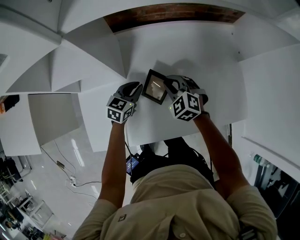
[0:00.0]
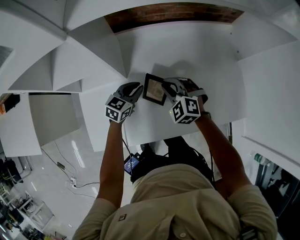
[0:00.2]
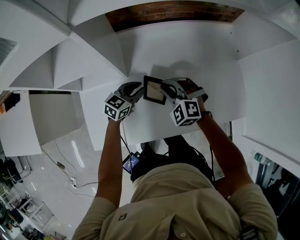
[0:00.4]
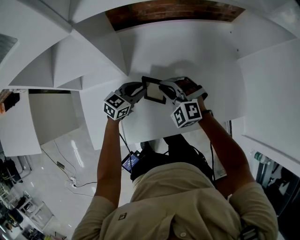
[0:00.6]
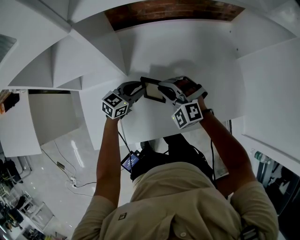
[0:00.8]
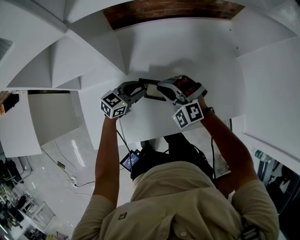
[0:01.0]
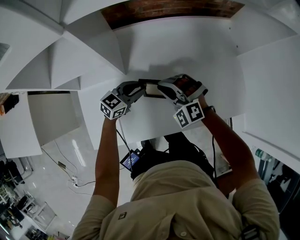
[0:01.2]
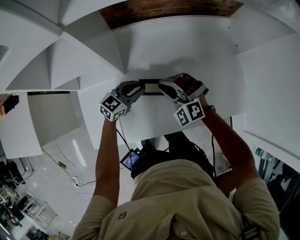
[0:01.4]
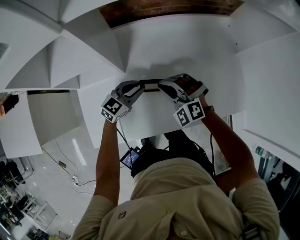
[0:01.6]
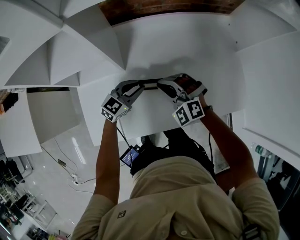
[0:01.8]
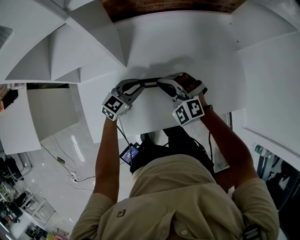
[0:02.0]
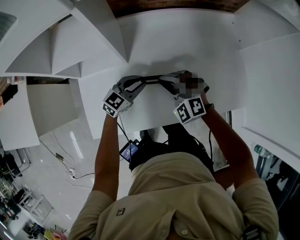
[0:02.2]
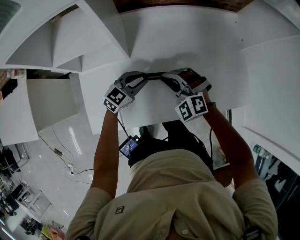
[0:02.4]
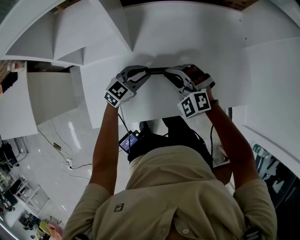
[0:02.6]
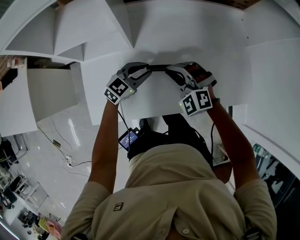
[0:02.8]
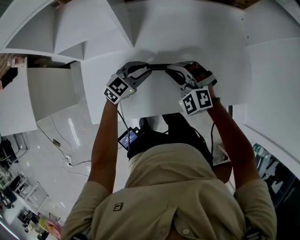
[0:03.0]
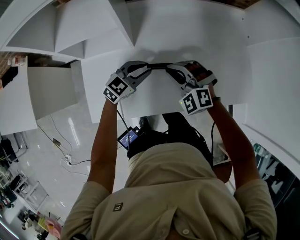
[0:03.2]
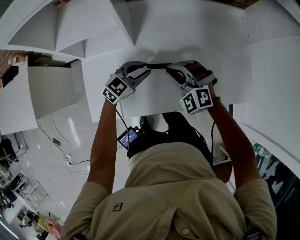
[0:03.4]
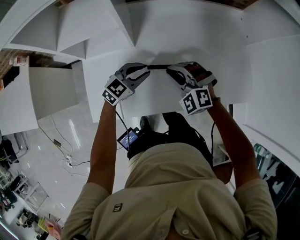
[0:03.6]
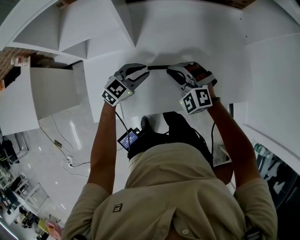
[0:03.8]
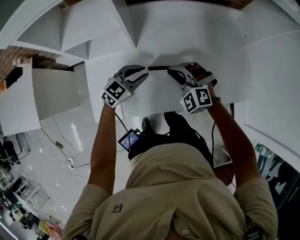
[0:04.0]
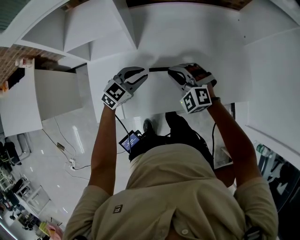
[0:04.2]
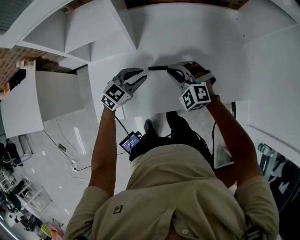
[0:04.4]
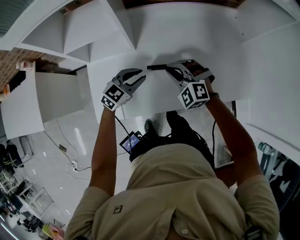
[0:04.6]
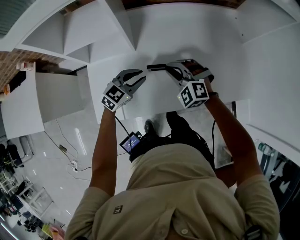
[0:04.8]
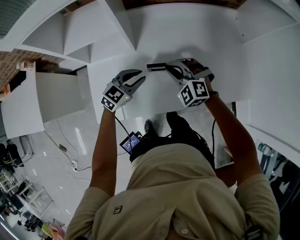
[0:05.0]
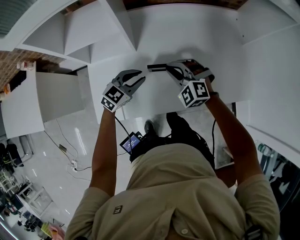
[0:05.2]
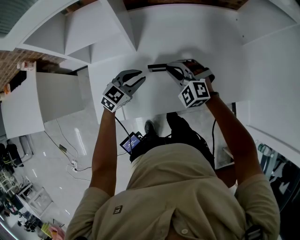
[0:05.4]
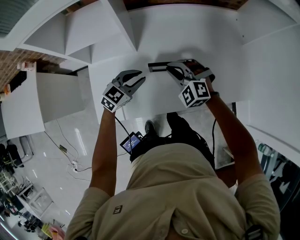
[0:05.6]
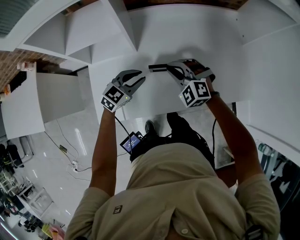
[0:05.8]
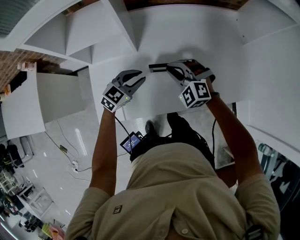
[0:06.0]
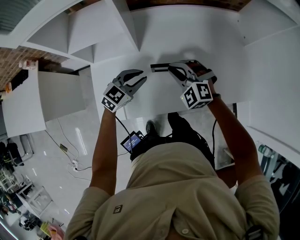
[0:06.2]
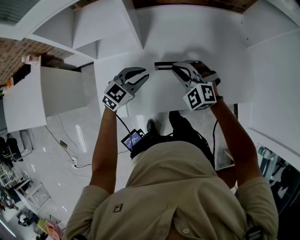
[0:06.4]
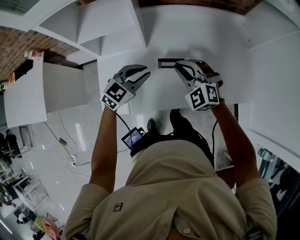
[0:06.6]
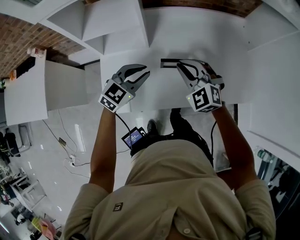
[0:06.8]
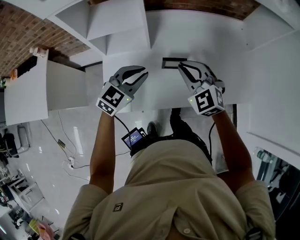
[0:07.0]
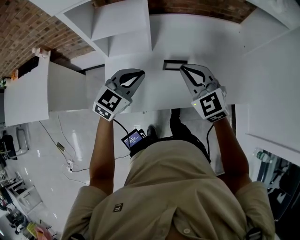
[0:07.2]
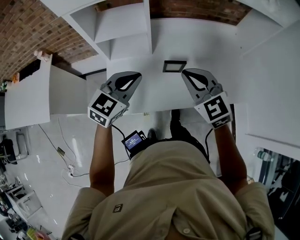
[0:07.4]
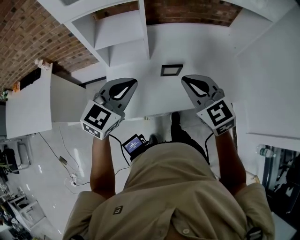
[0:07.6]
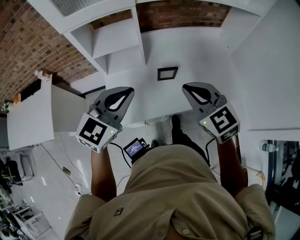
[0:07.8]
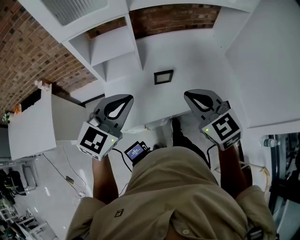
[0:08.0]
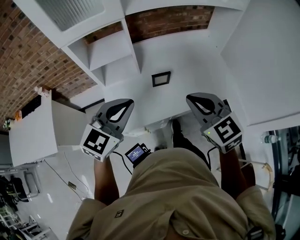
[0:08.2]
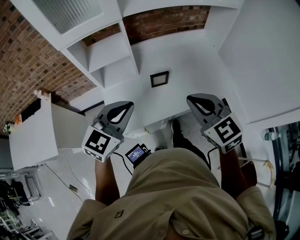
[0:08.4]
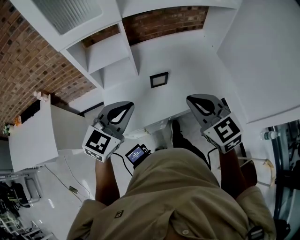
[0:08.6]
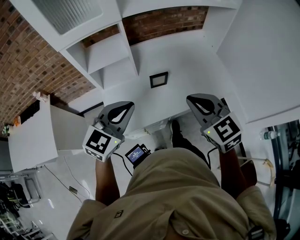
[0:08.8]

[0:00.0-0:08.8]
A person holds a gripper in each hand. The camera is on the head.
0:00.0 to 0:01.4: The right gripper heads backward, covering roughly 5 cm, and swivels some 30 degrees. Meanwhile the left gripper changes its angle by roughly 20 degrees.
0:01.4 to 0:03.0: The grippers move only a little.
0:03.0 to 0:04.4: The left gripper ends up approximately 5 cm from where it was.
0:04.4 to 0:05.8: There are only small adjustments of the grippers.
0:05.8 to 0:07.4: The grippers both shift upward and backward by some 25 cm. The right gripper changes its angle by approximately 40 degrees.
0:07.4 to 0:08.8: The right gripper is displaced backward, upward and to the right by about 15 cm. Meanwhile the left gripper moves backward and upward, about 15 cm.

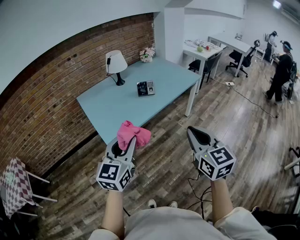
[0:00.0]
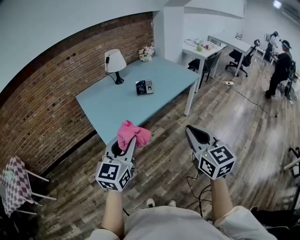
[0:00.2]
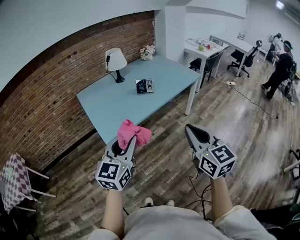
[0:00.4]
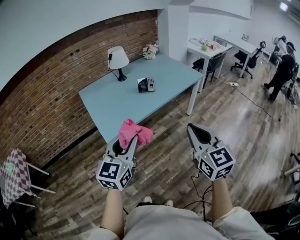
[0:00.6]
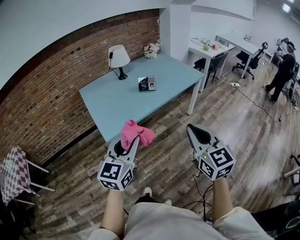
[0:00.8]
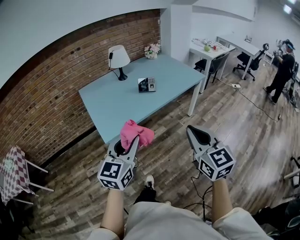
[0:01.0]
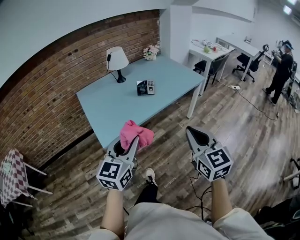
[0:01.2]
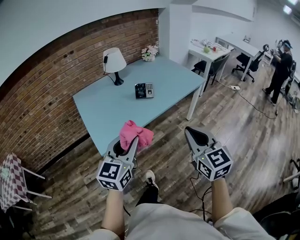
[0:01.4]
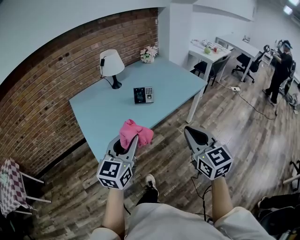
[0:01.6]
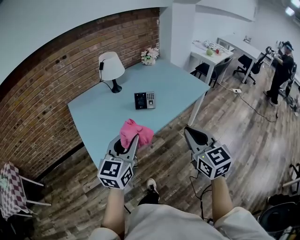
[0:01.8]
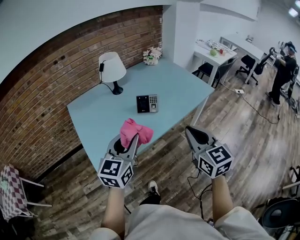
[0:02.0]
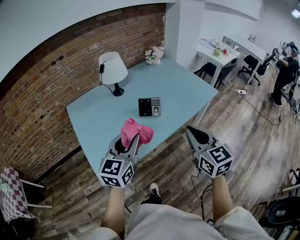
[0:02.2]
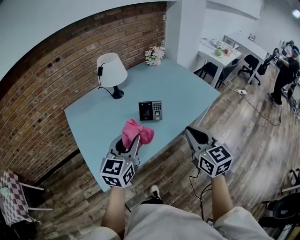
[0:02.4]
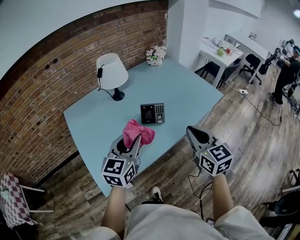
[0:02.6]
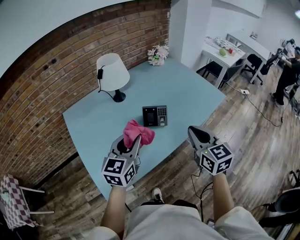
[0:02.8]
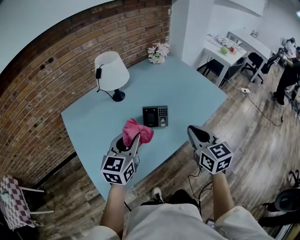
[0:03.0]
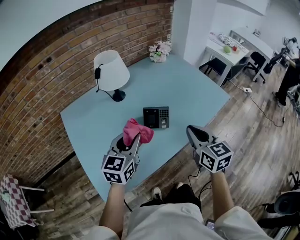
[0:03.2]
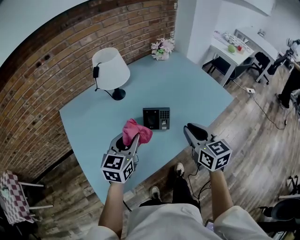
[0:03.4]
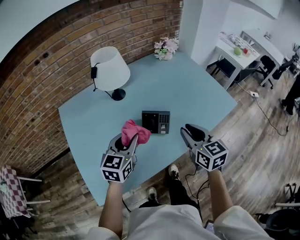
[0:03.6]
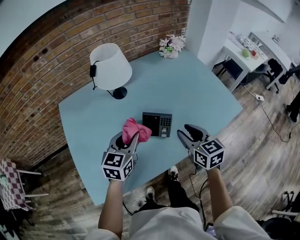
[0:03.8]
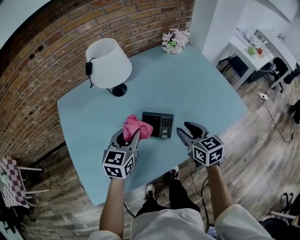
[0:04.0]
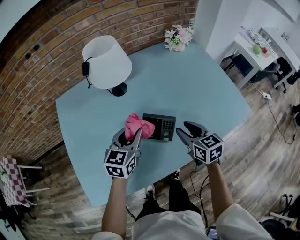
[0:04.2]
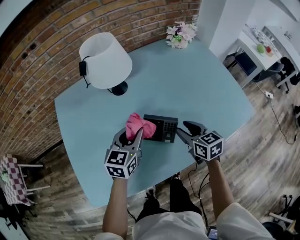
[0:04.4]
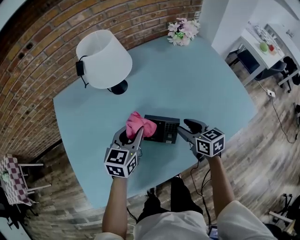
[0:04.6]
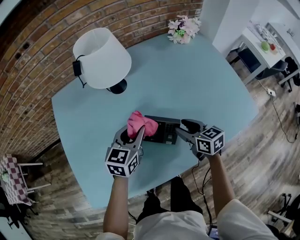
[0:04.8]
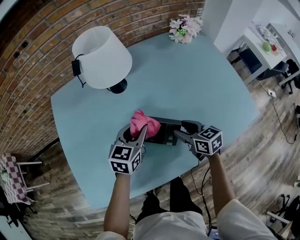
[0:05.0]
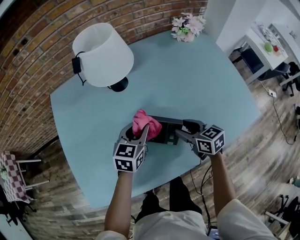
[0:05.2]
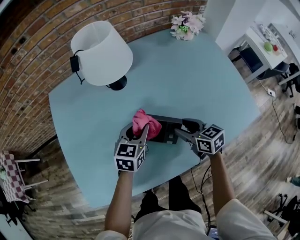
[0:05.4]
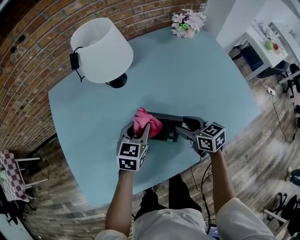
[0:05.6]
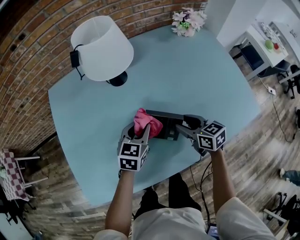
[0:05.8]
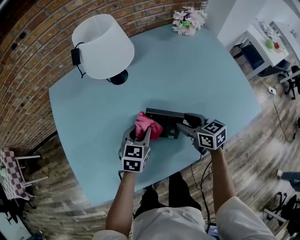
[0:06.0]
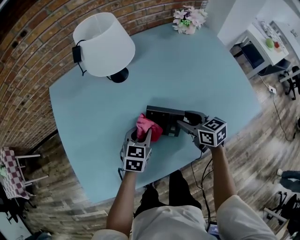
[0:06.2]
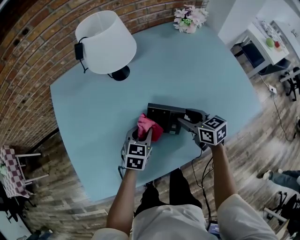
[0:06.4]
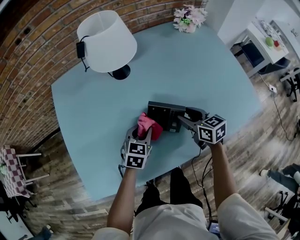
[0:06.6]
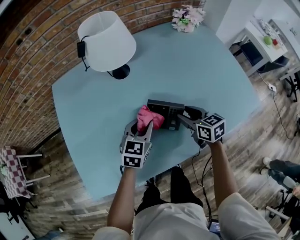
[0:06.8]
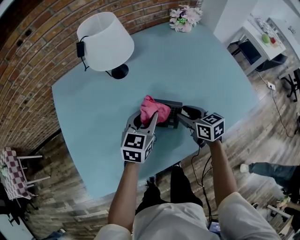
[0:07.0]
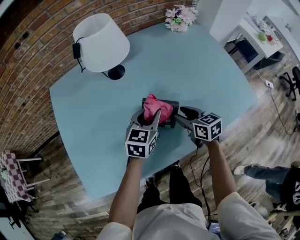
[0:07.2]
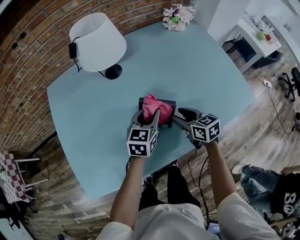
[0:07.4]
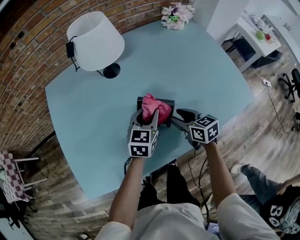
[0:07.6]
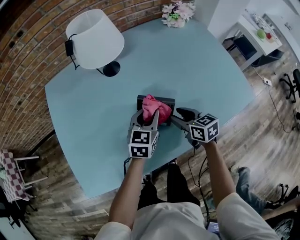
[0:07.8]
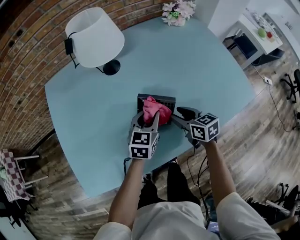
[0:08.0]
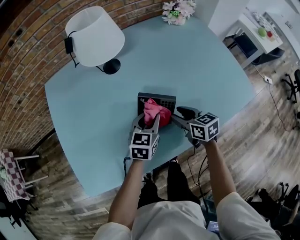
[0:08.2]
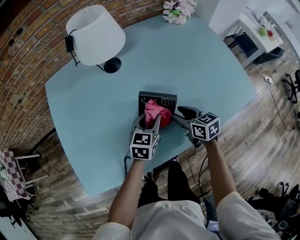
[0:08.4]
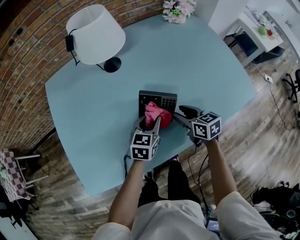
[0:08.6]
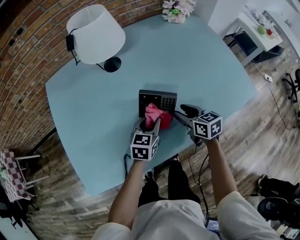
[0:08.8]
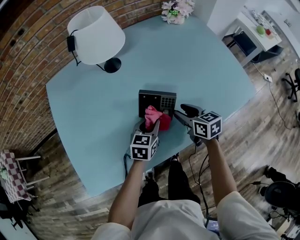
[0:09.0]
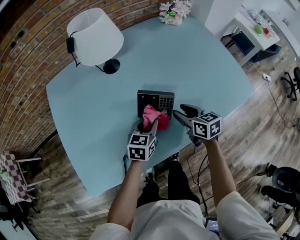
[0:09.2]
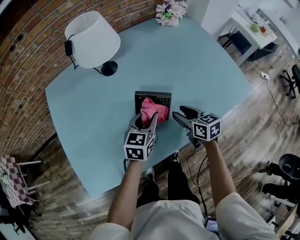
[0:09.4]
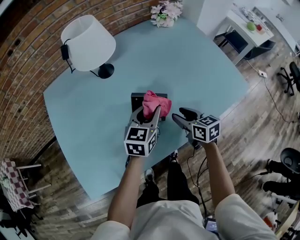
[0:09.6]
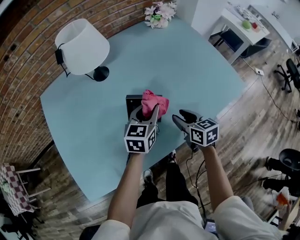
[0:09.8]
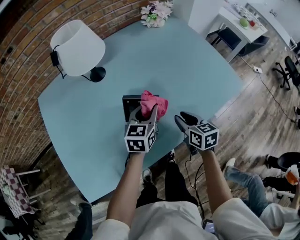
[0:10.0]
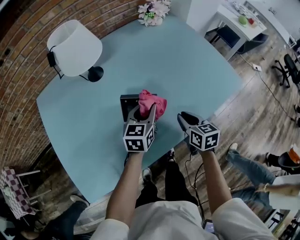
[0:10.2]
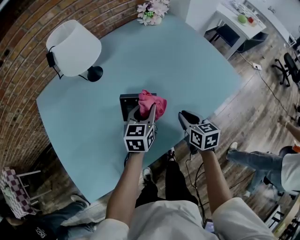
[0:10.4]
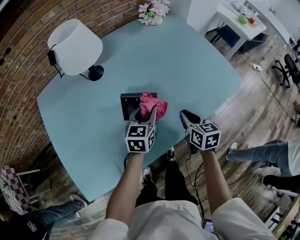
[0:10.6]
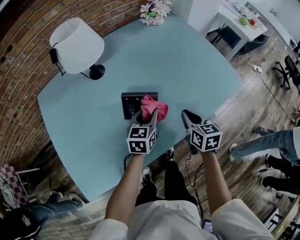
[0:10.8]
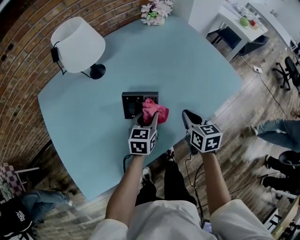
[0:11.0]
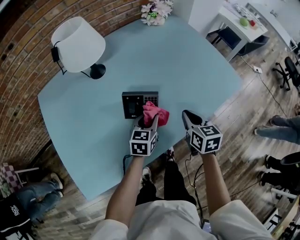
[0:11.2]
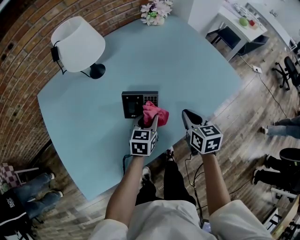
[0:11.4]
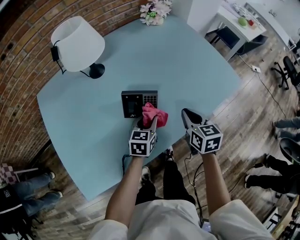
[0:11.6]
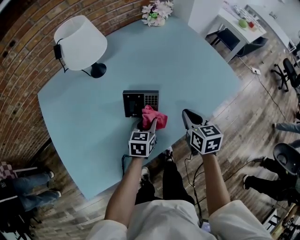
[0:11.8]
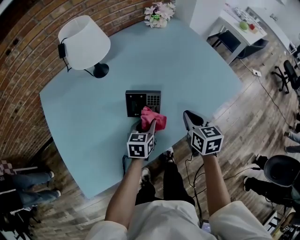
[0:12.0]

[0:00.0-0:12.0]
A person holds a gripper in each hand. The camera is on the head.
0:00.0 to 0:01.6: The grippers both shift forward by about 15 cm.
0:01.6 to 0:03.0: The two grippers go roughly 30 cm forward.
0:03.0 to 0:04.4: Both grippers move forward and downward, approximately 25 cm. The right gripper swivels some 30 degrees, and opens up.
0:04.4 to 0:06.0: The left gripper is displaced downward by roughly 10 cm; the right gripper shifts by approximately 5 cm.
0:06.0 to 0:07.6: The left gripper goes roughly 5 cm to the right.
0:07.6 to 0:09.0: The left gripper is displaced downward and backward by some 10 cm.
0:09.0 to 0:10.4: The left gripper goes approximately 10 cm upward and to the right, while the right gripper goes roughly 10 cm to the right, and closes its fingers.
0:10.4 to 0:12.0: The left gripper moves backward and downward, approximately 10 cm, while the right gripper ends up some 5 cm from where it was.

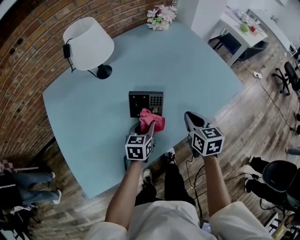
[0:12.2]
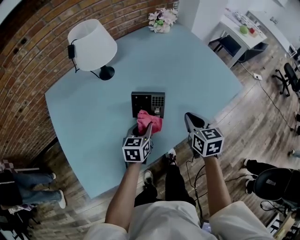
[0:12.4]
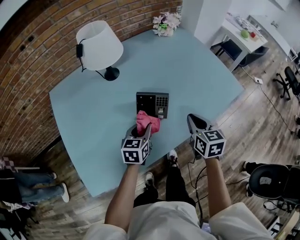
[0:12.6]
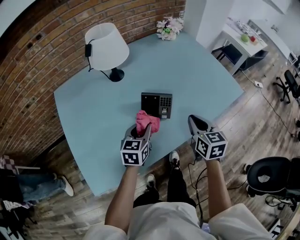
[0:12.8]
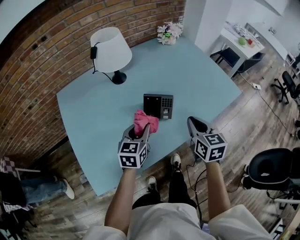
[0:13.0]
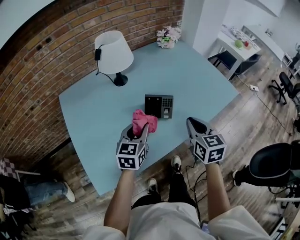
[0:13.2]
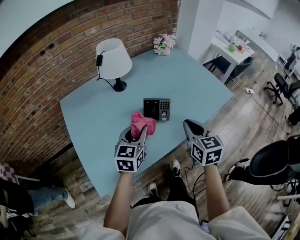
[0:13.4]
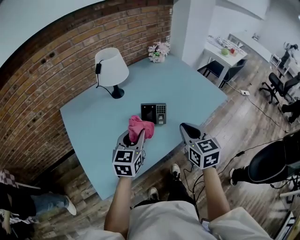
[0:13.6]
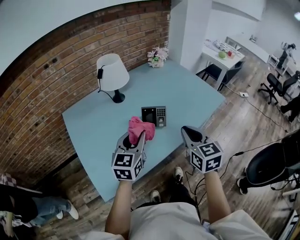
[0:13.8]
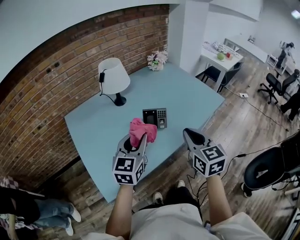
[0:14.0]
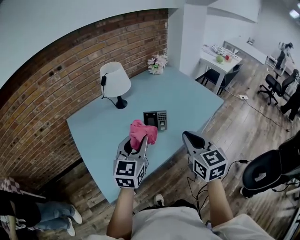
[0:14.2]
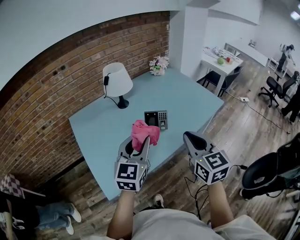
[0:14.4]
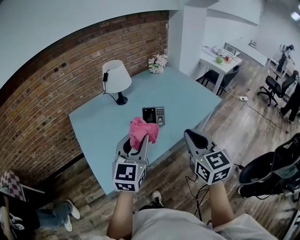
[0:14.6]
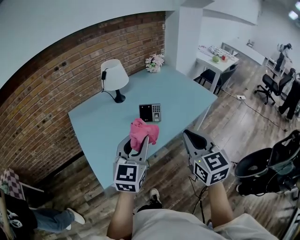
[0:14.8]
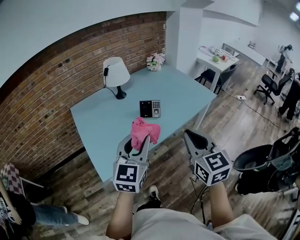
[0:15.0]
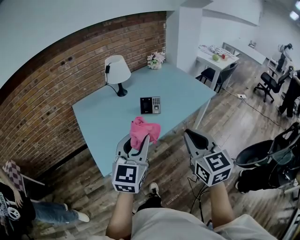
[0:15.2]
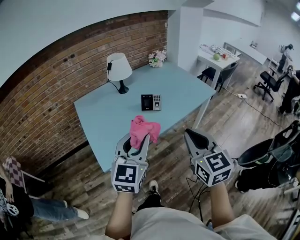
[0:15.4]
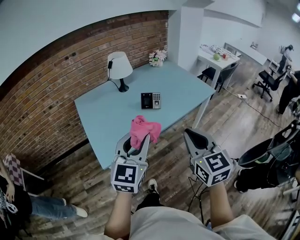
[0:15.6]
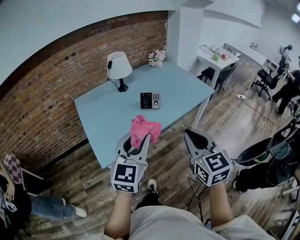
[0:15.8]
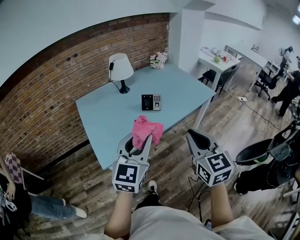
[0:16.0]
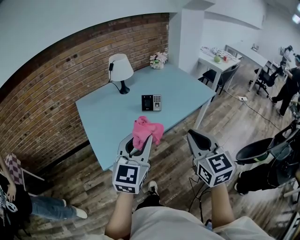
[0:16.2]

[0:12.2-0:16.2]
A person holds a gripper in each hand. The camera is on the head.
0:12.2 to 0:13.6: The grippers both shift upward, backward and to the left by about 25 cm. The left gripper changes its angle by roughly 20 degrees.
0:13.6 to 0:14.8: The two grippers go roughly 20 cm backward and upward.
0:14.8 to 0:16.2: Both grippers travel together backward, about 10 cm.
